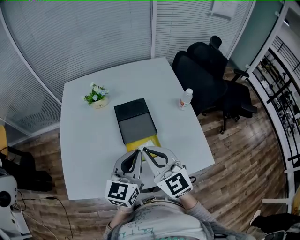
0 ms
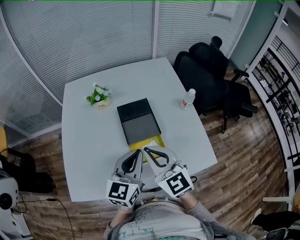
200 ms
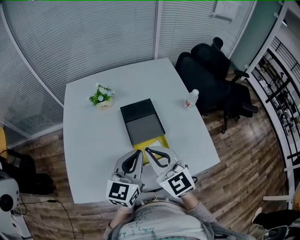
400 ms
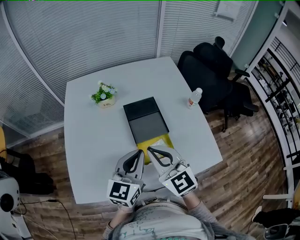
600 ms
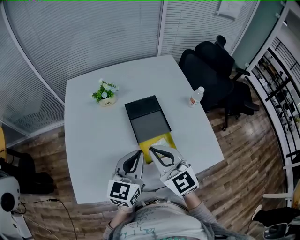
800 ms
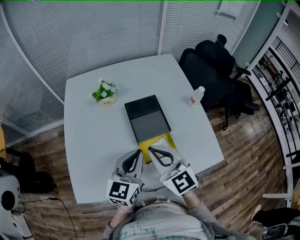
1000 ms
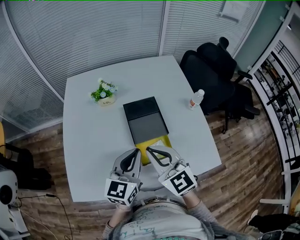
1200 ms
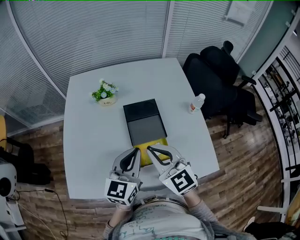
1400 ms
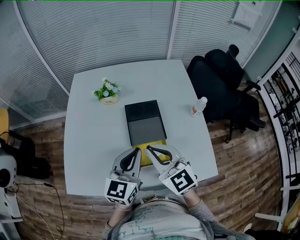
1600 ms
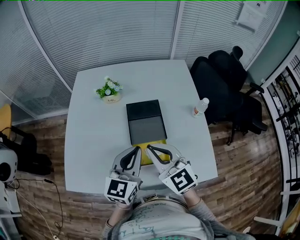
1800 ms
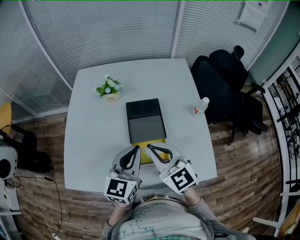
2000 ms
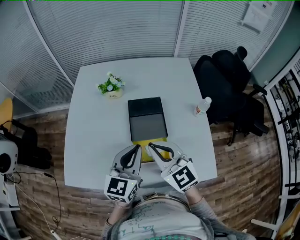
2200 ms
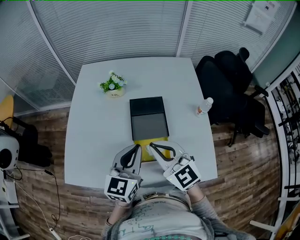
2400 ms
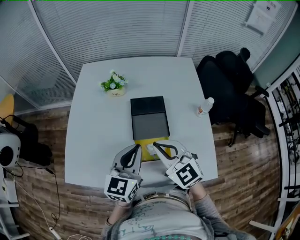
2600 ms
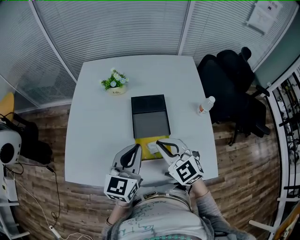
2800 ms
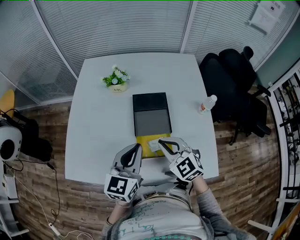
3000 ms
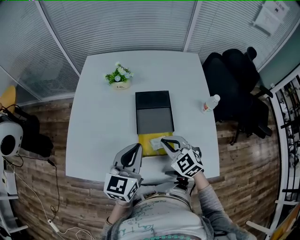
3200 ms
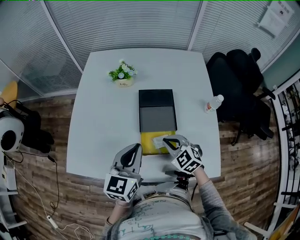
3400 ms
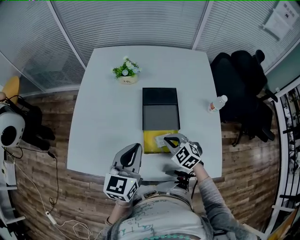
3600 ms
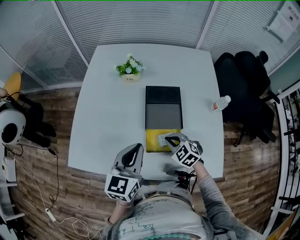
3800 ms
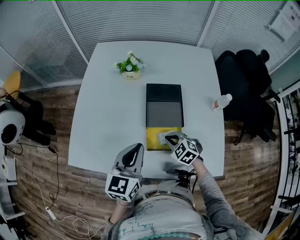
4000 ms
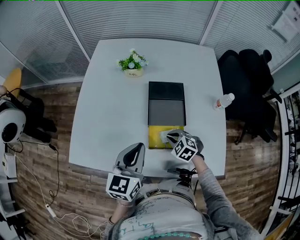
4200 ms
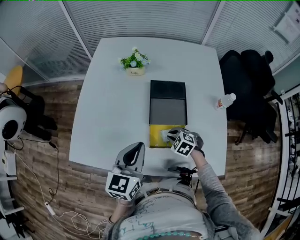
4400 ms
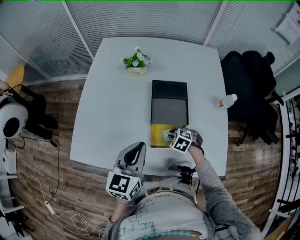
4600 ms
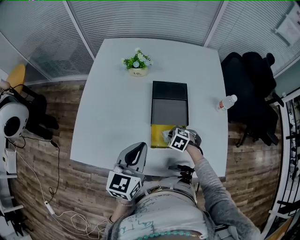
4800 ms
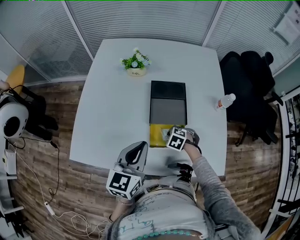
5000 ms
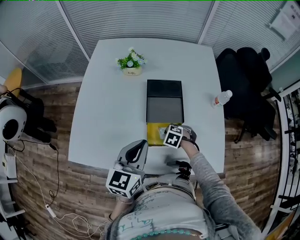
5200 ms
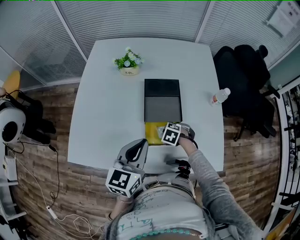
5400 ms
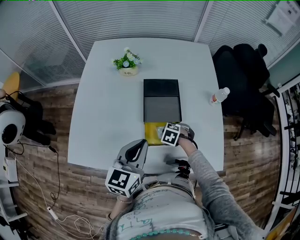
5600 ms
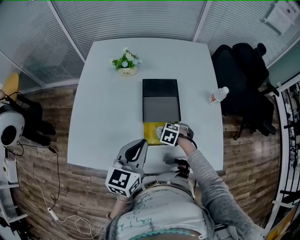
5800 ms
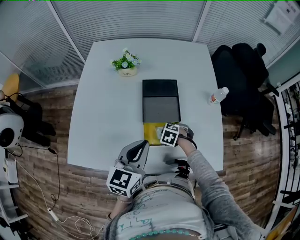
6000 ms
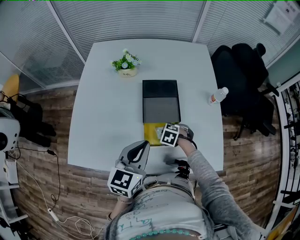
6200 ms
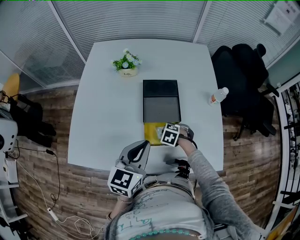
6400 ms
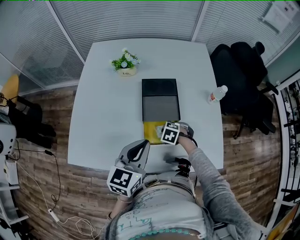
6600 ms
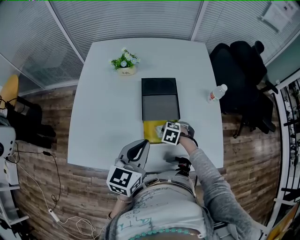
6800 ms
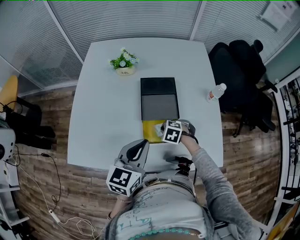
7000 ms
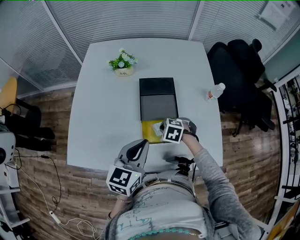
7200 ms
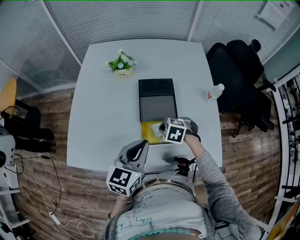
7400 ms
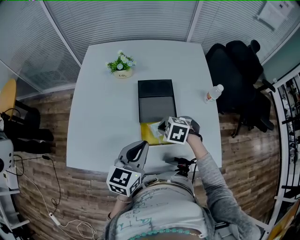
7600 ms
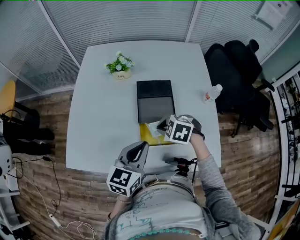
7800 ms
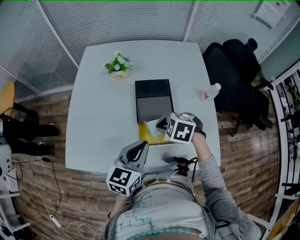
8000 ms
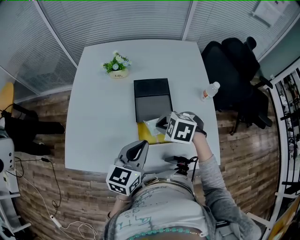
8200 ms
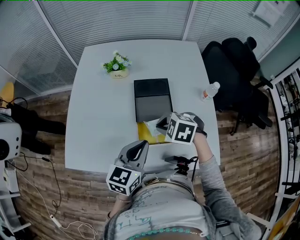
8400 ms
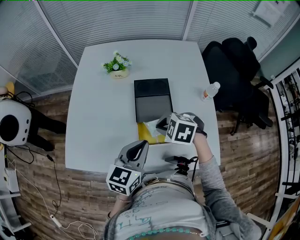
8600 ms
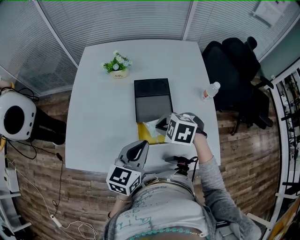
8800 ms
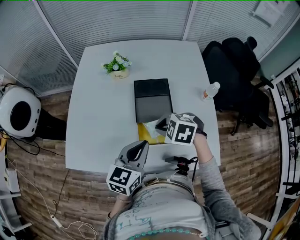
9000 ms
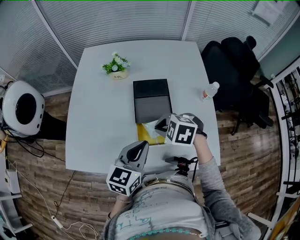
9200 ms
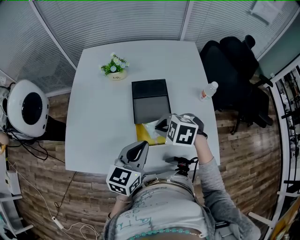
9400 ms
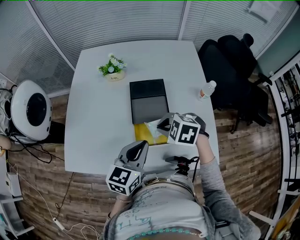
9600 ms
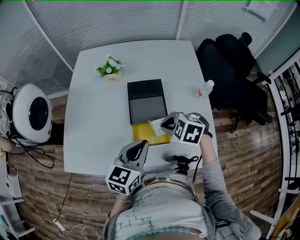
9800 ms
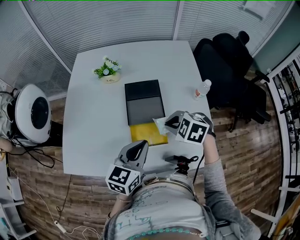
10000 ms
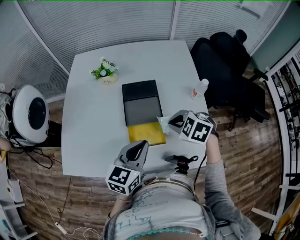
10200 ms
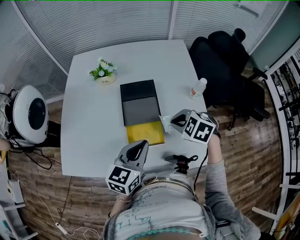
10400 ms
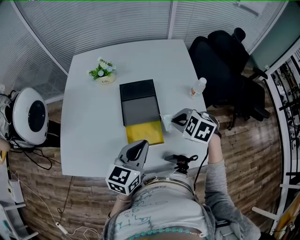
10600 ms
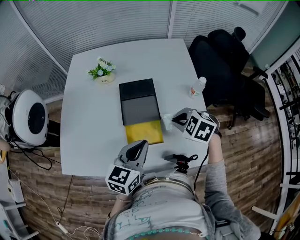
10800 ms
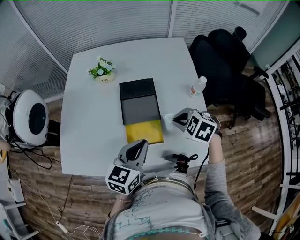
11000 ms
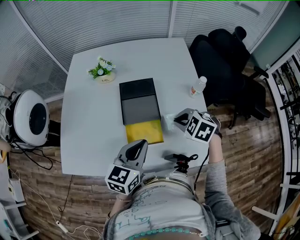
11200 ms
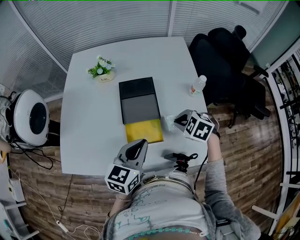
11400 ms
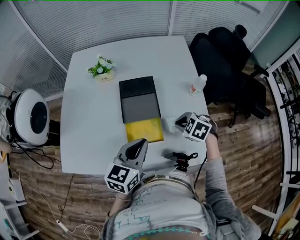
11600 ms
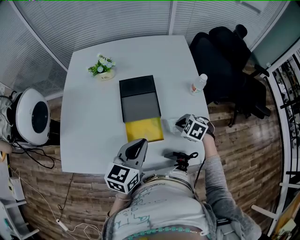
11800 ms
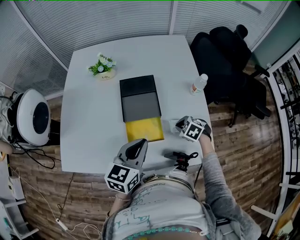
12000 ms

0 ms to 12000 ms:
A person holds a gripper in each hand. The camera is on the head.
1600 ms to 3000 ms: The right gripper shifts approximately 10 cm downward, and changes its angle by about 20 degrees.
3000 ms to 4400 ms: The left gripper goes about 5 cm to the left, while the right gripper moves downward, roughly 20 cm, and points its fingers roughly 40 degrees further downward.
4400 ms to 6000 ms: There are only small adjustments of the grippers.
6000 ms to 7600 ms: The right gripper is displaced upward by roughly 15 cm.
7600 ms to 9000 ms: The right gripper travels upward by some 10 cm.
9000 ms to 10400 ms: The left gripper is displaced to the right by approximately 5 cm. Meanwhile the right gripper heads to the right, covering approximately 15 cm.
10400 ms to 12000 ms: The right gripper heads downward, covering about 15 cm.

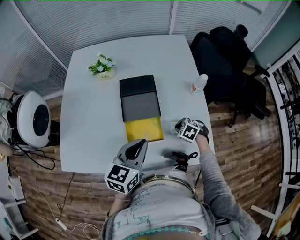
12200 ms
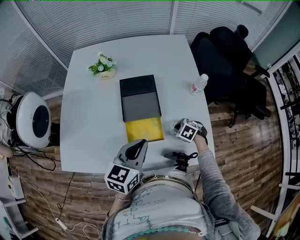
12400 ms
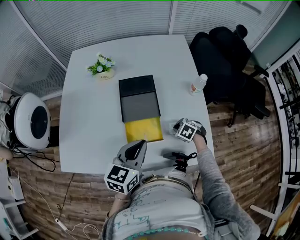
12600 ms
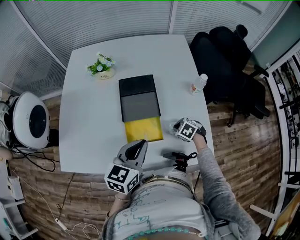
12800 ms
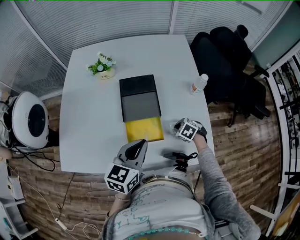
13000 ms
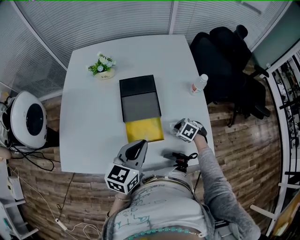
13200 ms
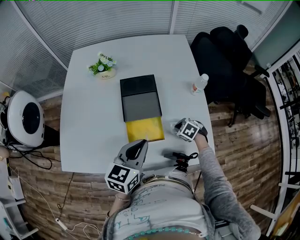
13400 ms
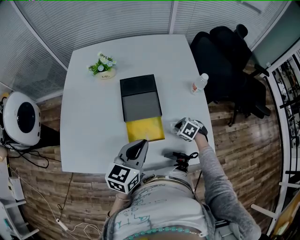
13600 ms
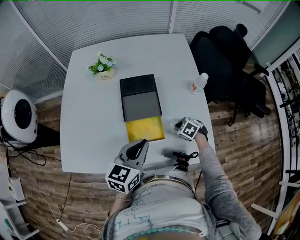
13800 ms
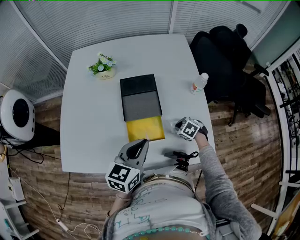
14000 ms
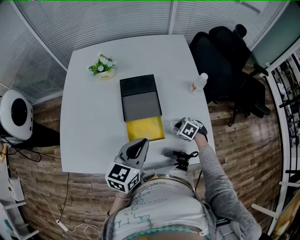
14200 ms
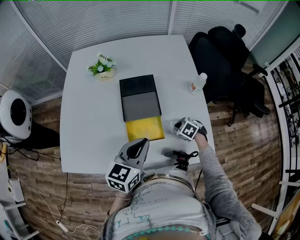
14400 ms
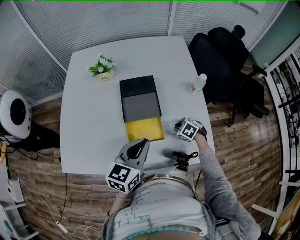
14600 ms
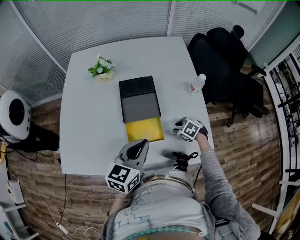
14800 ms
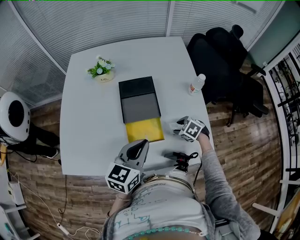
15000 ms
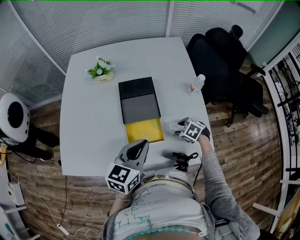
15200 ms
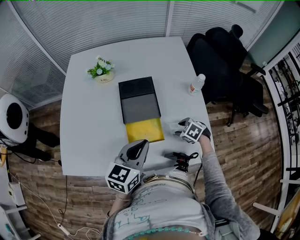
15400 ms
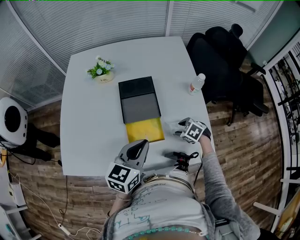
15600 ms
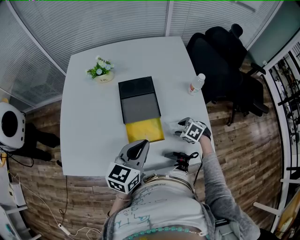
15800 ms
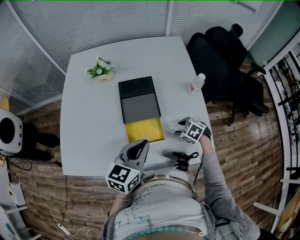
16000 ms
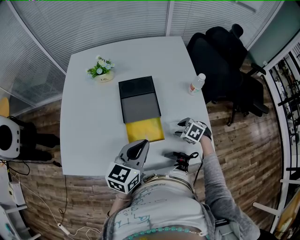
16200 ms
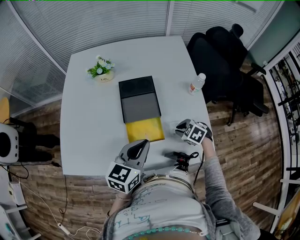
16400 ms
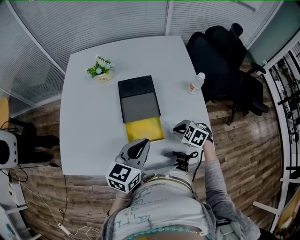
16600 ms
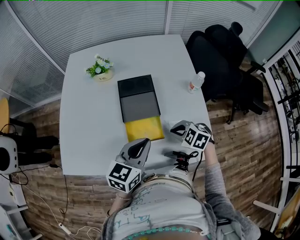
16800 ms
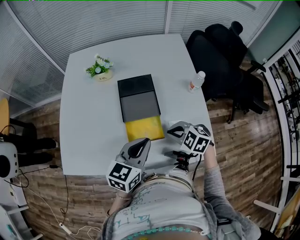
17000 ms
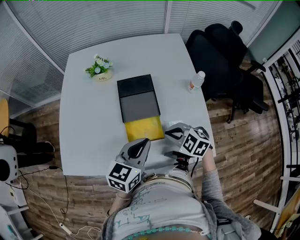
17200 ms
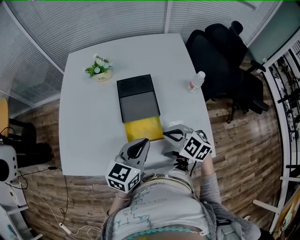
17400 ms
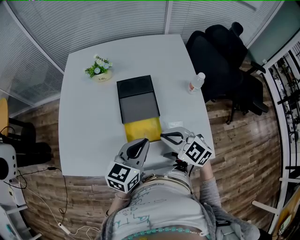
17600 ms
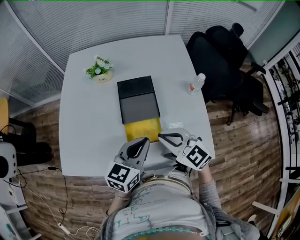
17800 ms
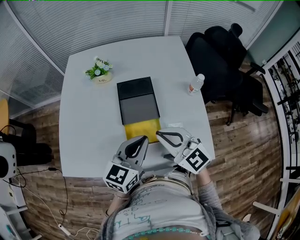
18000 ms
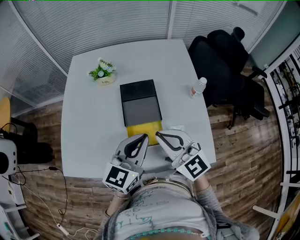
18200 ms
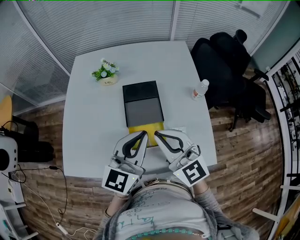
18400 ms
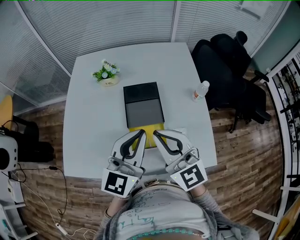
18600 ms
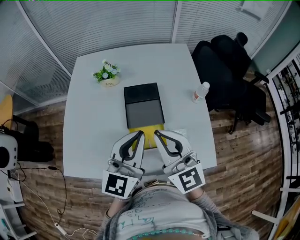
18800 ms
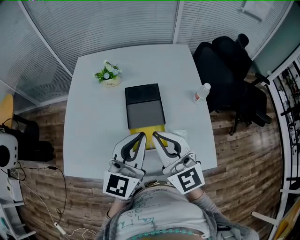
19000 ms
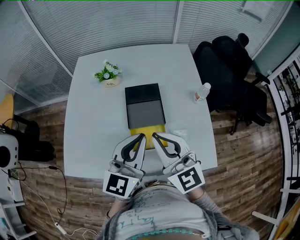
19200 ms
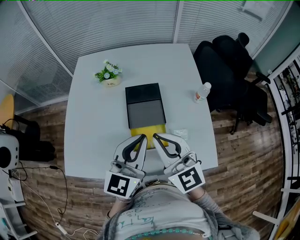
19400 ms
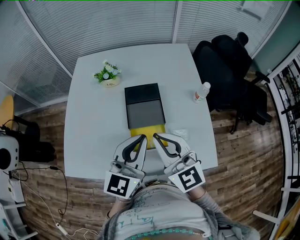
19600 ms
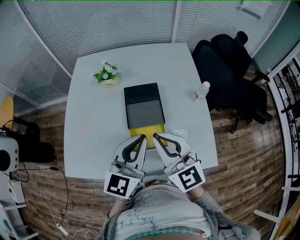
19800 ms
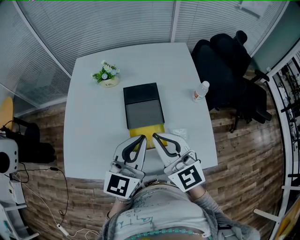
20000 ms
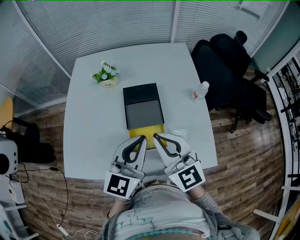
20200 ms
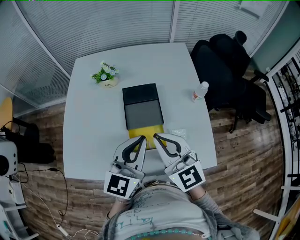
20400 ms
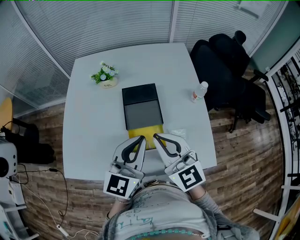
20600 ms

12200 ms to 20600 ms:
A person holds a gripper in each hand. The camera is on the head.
12200 ms to 13600 ms: The grippers make only small movements.
13600 ms to 15000 ms: The right gripper opens.
15000 ms to 16400 ms: The right gripper closes.
16400 ms to 17800 ms: The right gripper is displaced upward and to the left by approximately 20 cm, and angles its fingers upward, by roughly 40 degrees.
17800 ms to 19200 ms: The two grippers go about 10 cm upward. The left gripper swivels some 20 degrees; the right gripper rotates roughly 30 degrees.
19200 ms to 20600 ms: The grippers stay close to where they were, moving slightly.

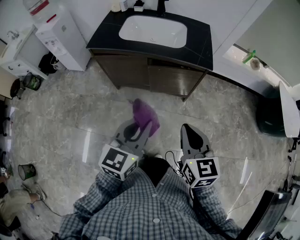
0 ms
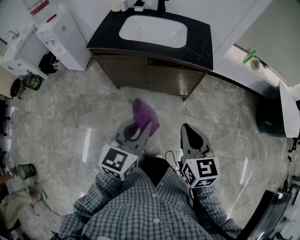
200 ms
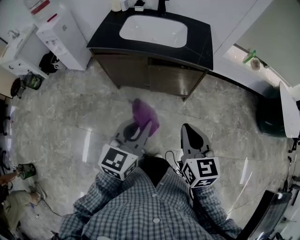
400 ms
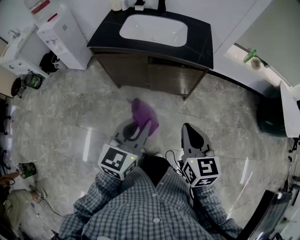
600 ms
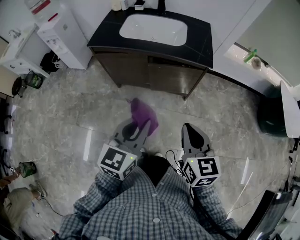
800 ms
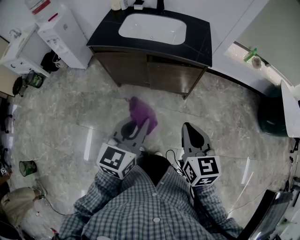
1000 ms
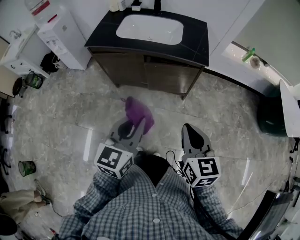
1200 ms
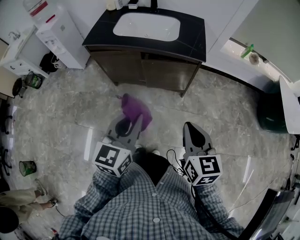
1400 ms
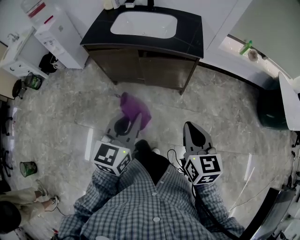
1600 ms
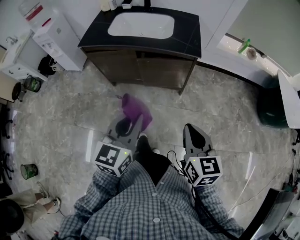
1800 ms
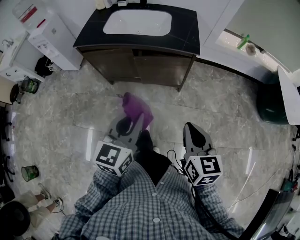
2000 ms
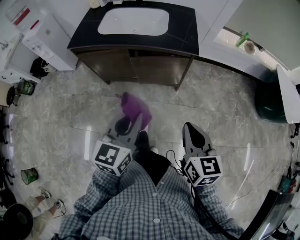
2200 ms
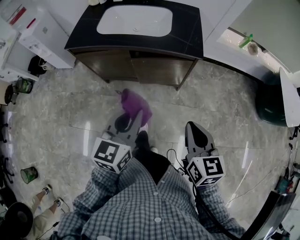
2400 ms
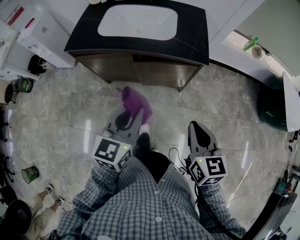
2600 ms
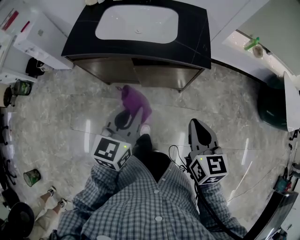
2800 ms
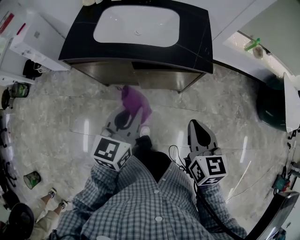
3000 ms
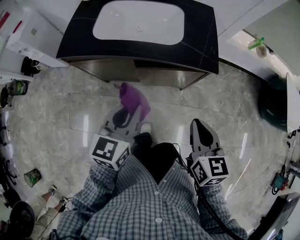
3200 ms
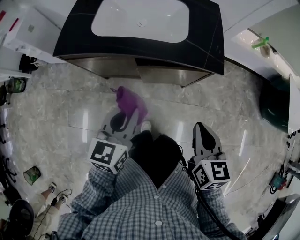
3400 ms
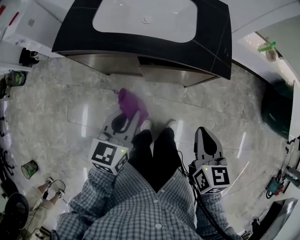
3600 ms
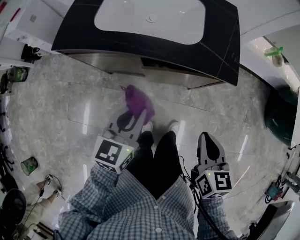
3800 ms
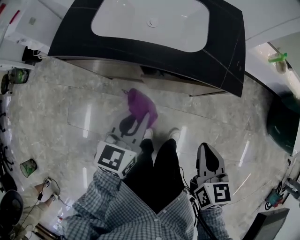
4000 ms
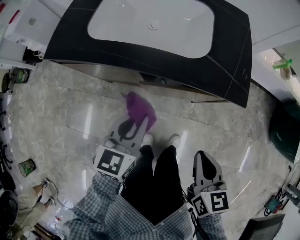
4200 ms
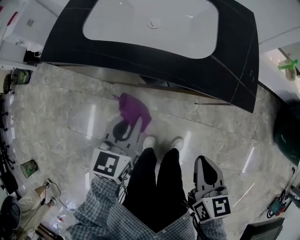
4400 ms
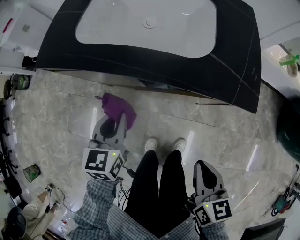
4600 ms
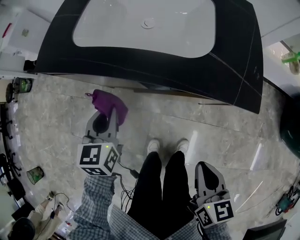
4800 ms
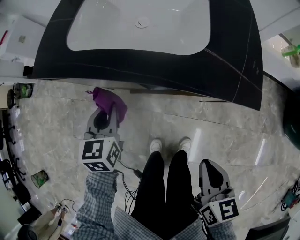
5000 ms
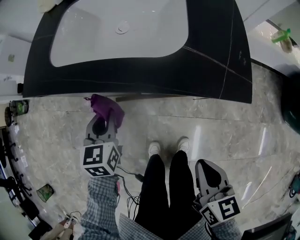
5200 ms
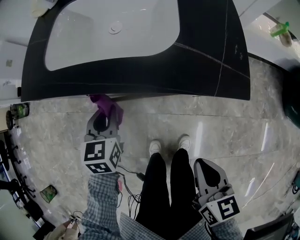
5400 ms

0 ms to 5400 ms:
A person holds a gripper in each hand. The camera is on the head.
0 ms to 1400 ms: The right gripper goes roughly 5 cm to the right.
1400 ms to 2800 ms: Both grippers move forward, approximately 15 cm.
2800 ms to 4000 ms: Both grippers move downward and forward, some 15 cm.
4000 ms to 5400 ms: The left gripper travels downward and forward by about 20 cm, and changes its angle by approximately 20 degrees; the right gripper shifts roughly 10 cm downward.
